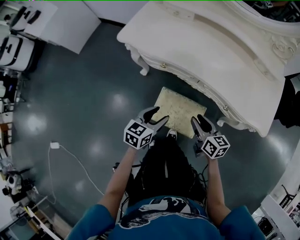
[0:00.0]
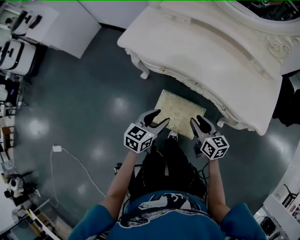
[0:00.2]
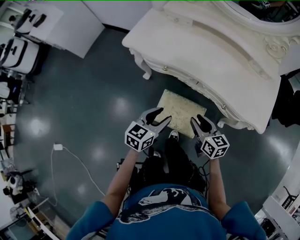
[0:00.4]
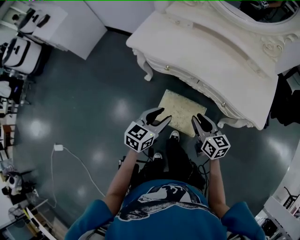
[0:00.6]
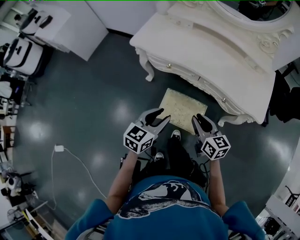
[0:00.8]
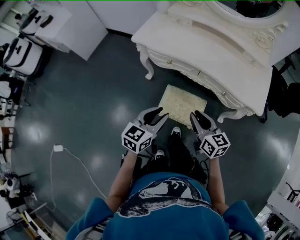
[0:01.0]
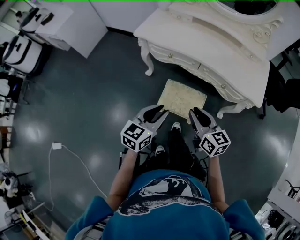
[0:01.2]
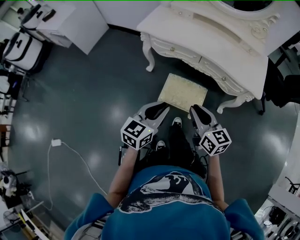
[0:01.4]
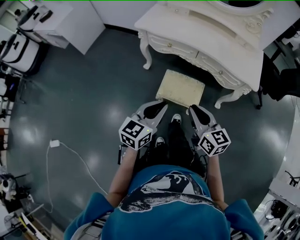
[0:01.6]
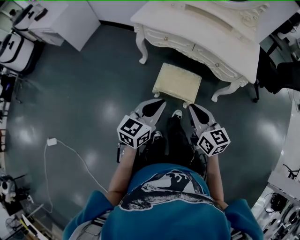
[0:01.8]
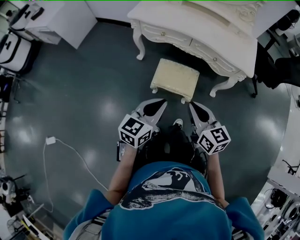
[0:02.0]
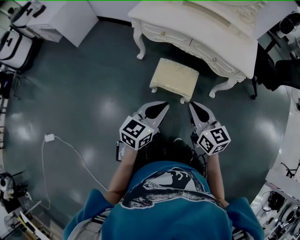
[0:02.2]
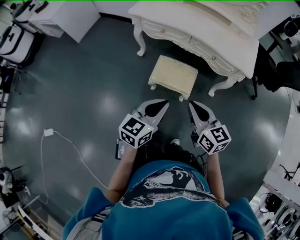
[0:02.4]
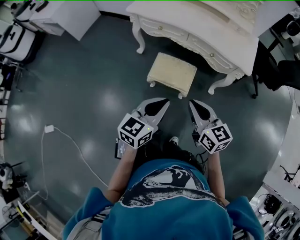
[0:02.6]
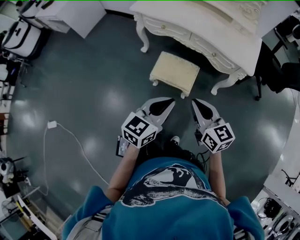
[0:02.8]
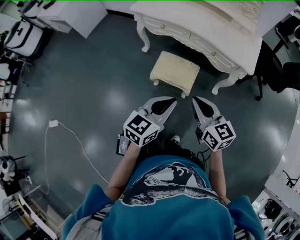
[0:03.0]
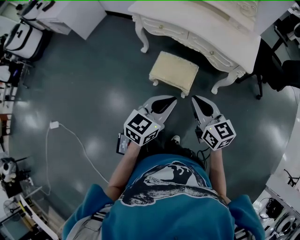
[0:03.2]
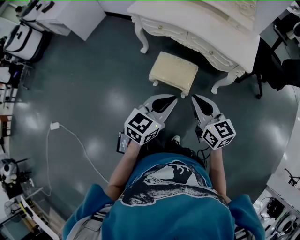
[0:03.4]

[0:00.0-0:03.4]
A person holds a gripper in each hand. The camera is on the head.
0:00.0 to 0:01.6: Both grippers move backward and upward, some 30 cm. The left gripper closes. The right gripper changes its angle by approximately 20 degrees.
0:01.6 to 0:03.4: The grippers both shift to the right and backward by roughly 15 cm.

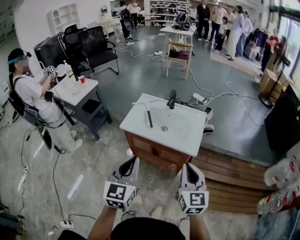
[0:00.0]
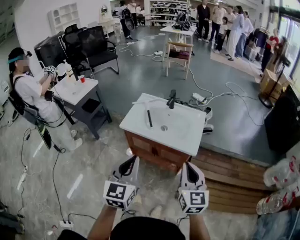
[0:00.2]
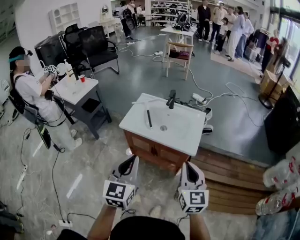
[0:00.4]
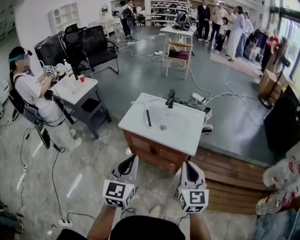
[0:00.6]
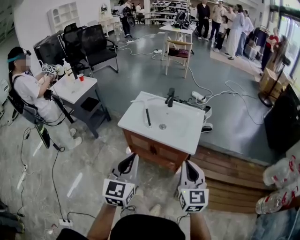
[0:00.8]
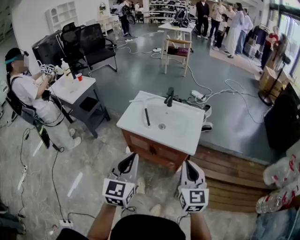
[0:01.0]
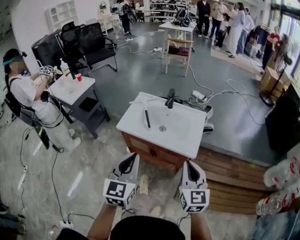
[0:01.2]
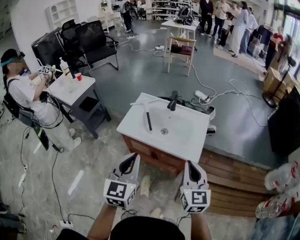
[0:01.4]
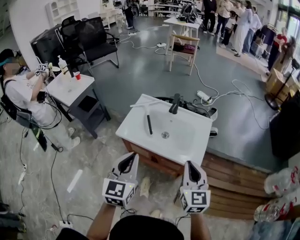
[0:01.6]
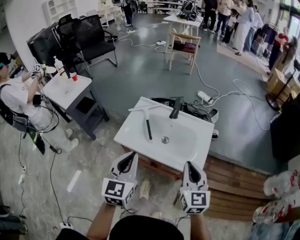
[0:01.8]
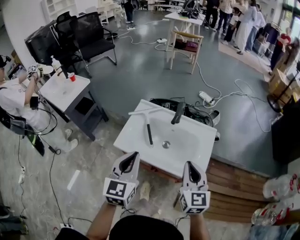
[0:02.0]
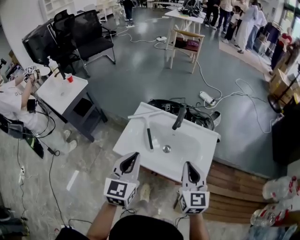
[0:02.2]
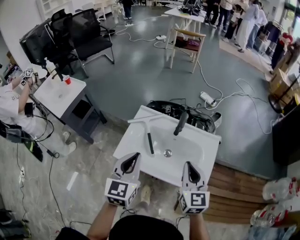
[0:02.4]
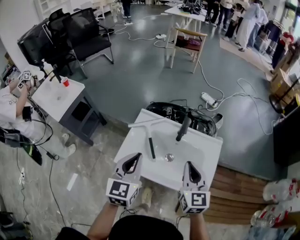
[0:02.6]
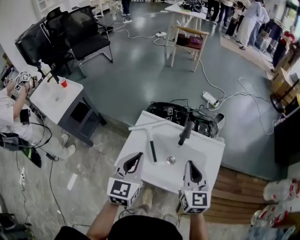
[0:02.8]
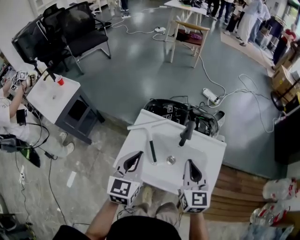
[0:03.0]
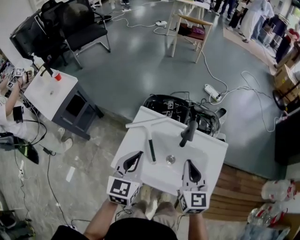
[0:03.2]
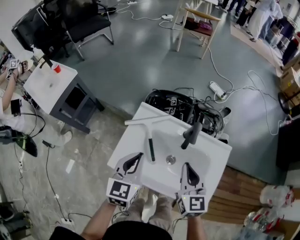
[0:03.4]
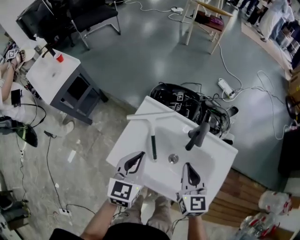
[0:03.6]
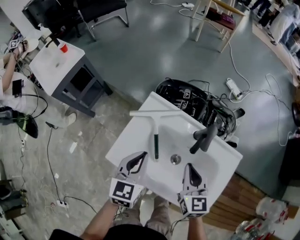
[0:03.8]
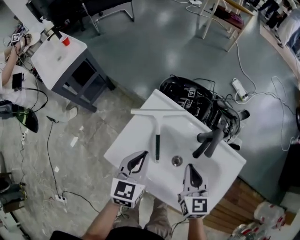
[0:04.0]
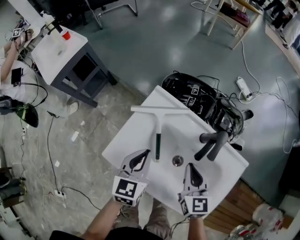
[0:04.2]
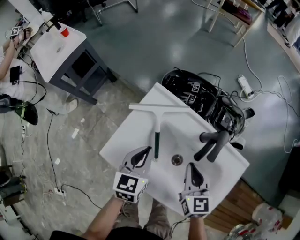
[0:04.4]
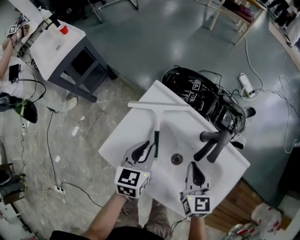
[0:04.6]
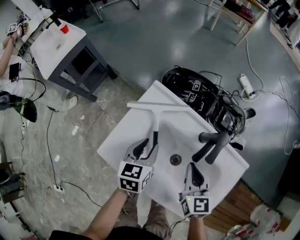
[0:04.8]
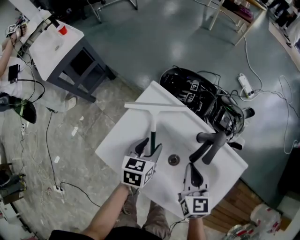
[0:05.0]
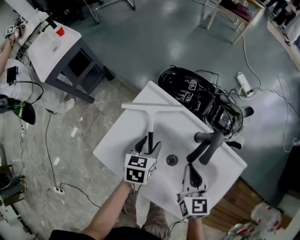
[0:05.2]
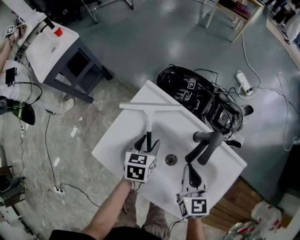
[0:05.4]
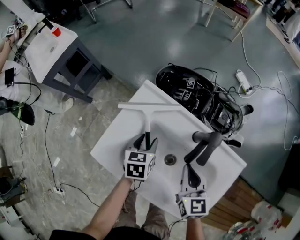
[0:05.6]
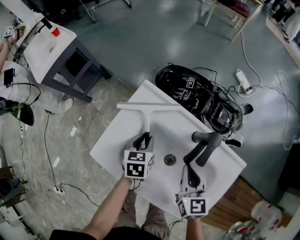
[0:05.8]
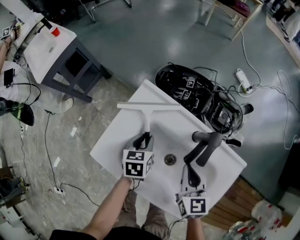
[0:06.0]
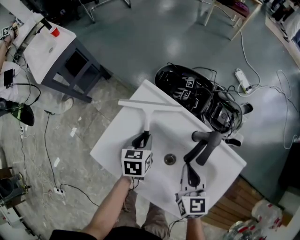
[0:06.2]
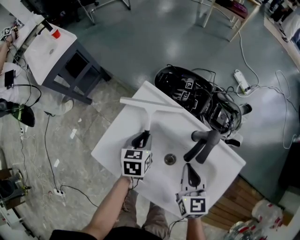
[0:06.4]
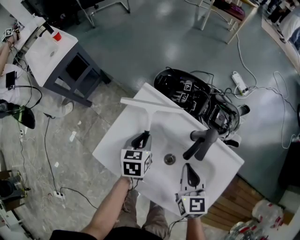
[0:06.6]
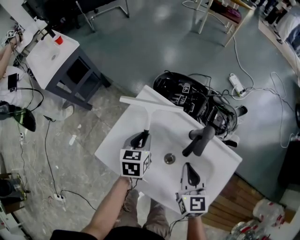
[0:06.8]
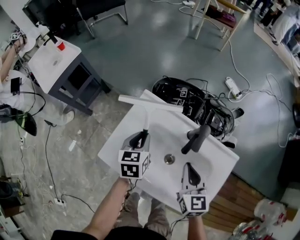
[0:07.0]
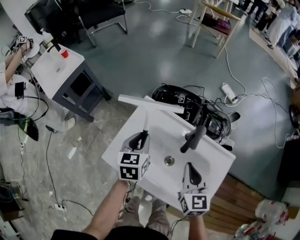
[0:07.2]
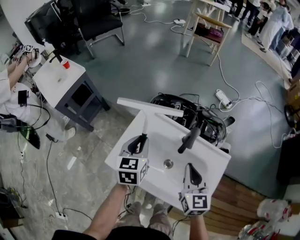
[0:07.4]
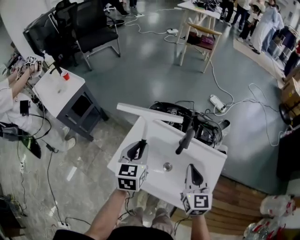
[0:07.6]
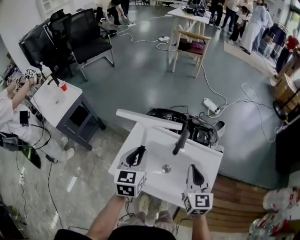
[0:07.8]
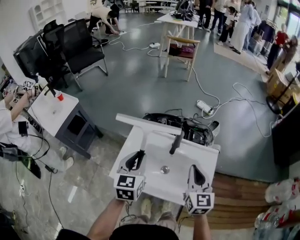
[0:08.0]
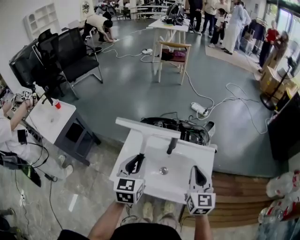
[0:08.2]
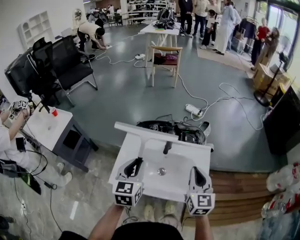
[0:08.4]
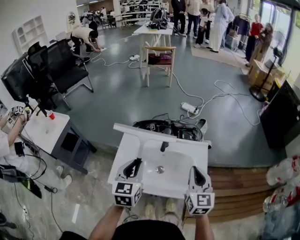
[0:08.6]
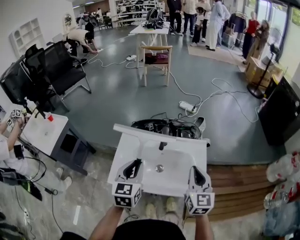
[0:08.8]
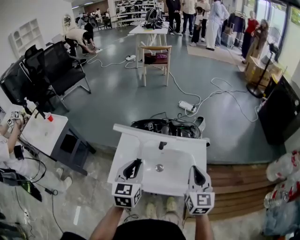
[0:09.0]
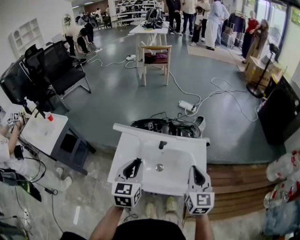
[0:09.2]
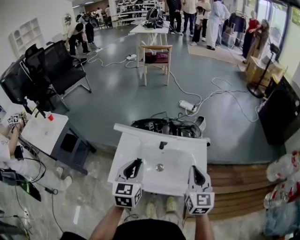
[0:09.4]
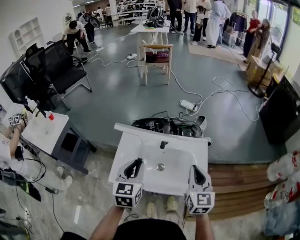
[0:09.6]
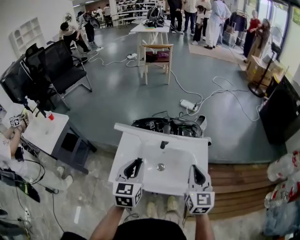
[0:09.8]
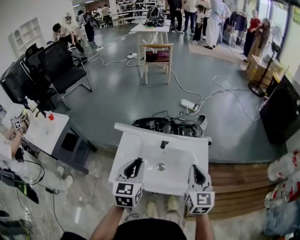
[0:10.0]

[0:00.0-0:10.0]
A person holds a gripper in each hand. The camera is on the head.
0:00.0 to 0:01.4: Both grippers travel together forward, roughly 10 cm.
0:01.4 to 0:02.8: The grippers both shift forward by roughly 35 cm.
0:02.8 to 0:04.2: The right gripper is displaced downward and forward by about 20 cm, and turns by some 20 degrees; the left gripper heads downward, covering approximately 20 cm, and swivels approximately 20 degrees.
0:04.2 to 0:05.8: The left gripper moves downward and forward, roughly 15 cm, swivels roughly 20 degrees, and opens its fingers.
0:05.8 to 0:07.2: The left gripper travels upward by some 15 cm, while the right gripper shifts about 10 cm upward.
0:07.2 to 0:08.6: The right gripper heads upward, backward and to the right, covering about 20 cm, and turns by roughly 30 degrees, while the left gripper goes roughly 20 cm upward and backward, and changes its angle by roughly 30 degrees.
0:08.6 to 0:10.0: The grippers make only small movements.

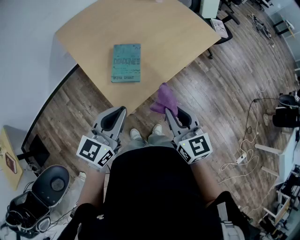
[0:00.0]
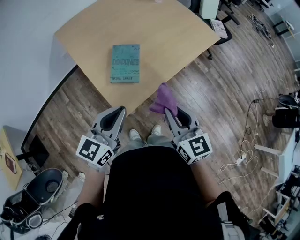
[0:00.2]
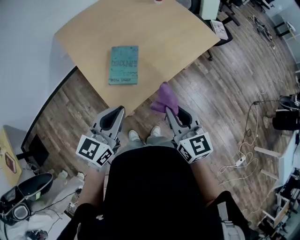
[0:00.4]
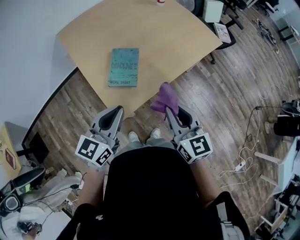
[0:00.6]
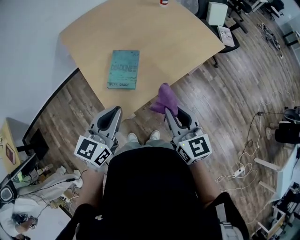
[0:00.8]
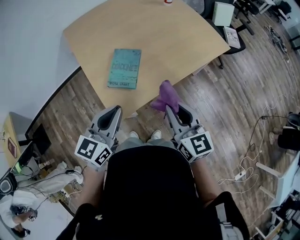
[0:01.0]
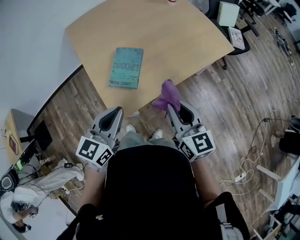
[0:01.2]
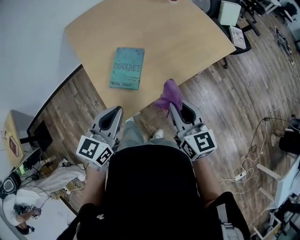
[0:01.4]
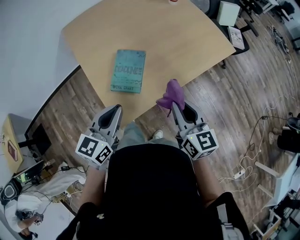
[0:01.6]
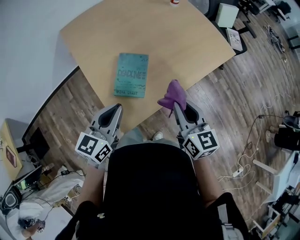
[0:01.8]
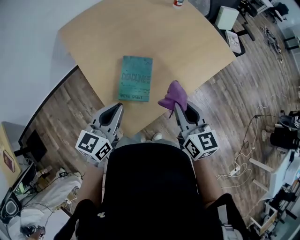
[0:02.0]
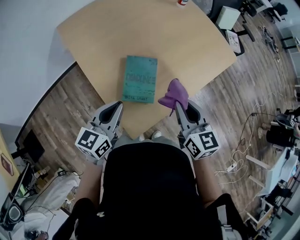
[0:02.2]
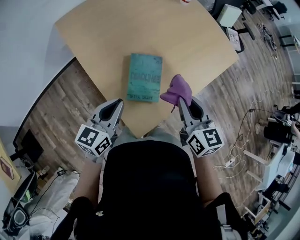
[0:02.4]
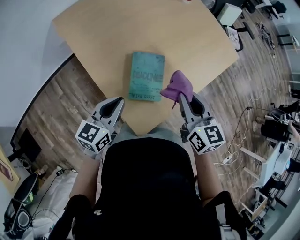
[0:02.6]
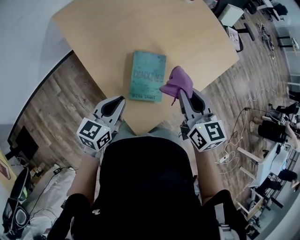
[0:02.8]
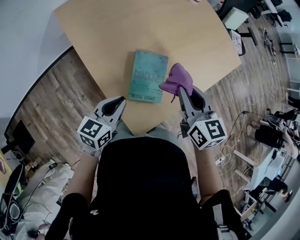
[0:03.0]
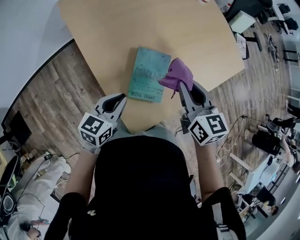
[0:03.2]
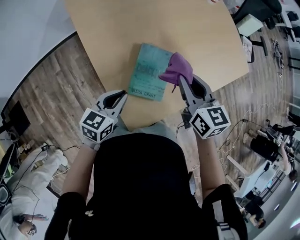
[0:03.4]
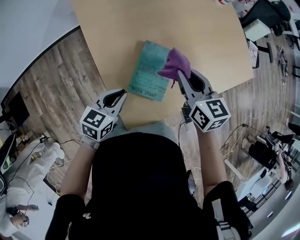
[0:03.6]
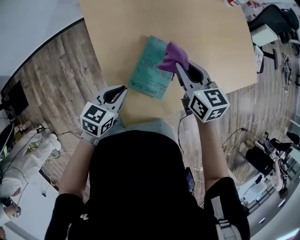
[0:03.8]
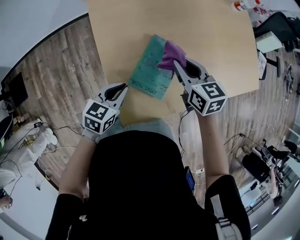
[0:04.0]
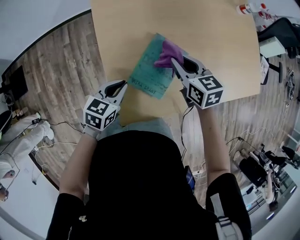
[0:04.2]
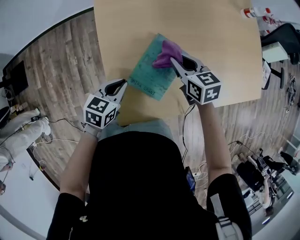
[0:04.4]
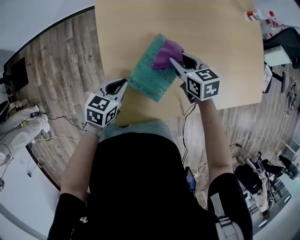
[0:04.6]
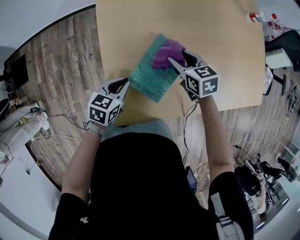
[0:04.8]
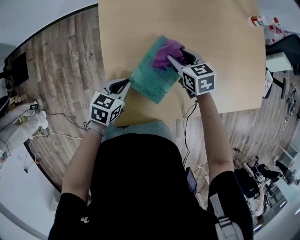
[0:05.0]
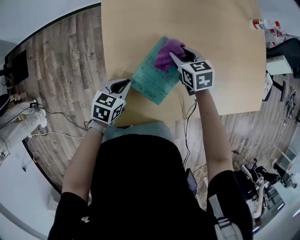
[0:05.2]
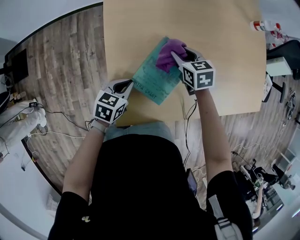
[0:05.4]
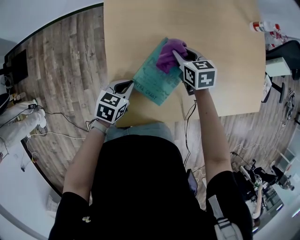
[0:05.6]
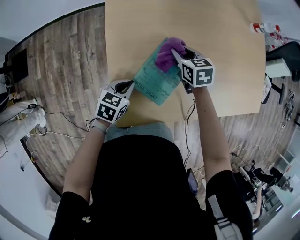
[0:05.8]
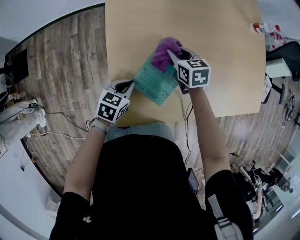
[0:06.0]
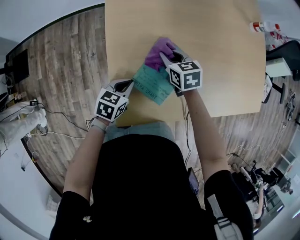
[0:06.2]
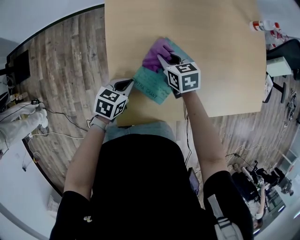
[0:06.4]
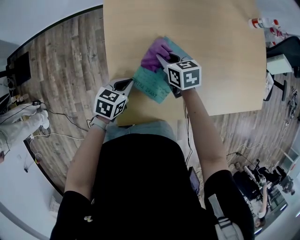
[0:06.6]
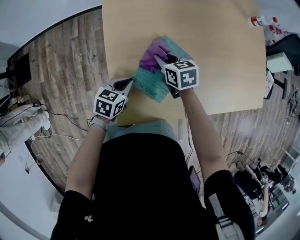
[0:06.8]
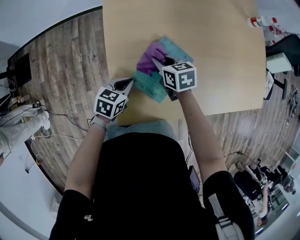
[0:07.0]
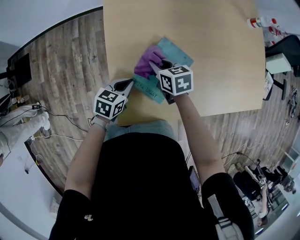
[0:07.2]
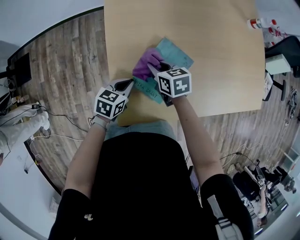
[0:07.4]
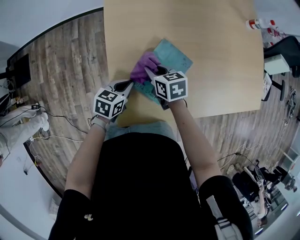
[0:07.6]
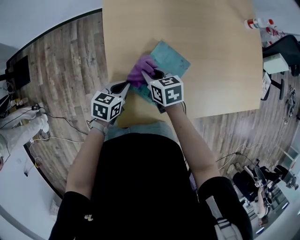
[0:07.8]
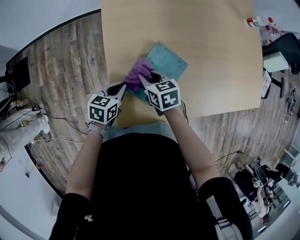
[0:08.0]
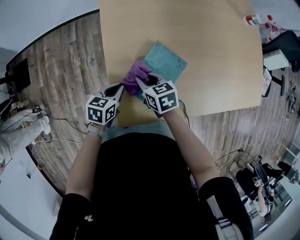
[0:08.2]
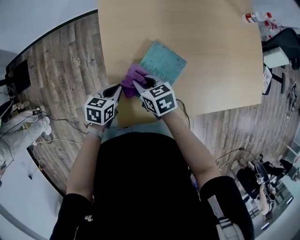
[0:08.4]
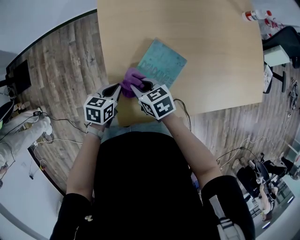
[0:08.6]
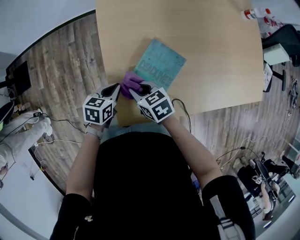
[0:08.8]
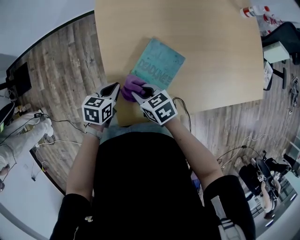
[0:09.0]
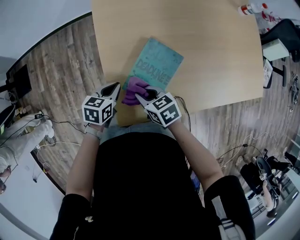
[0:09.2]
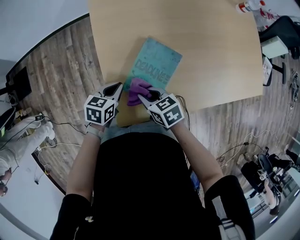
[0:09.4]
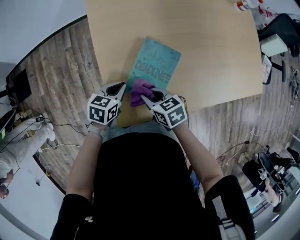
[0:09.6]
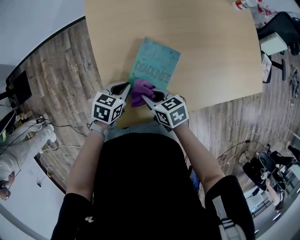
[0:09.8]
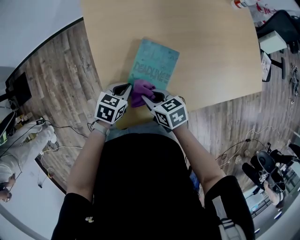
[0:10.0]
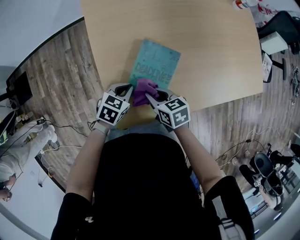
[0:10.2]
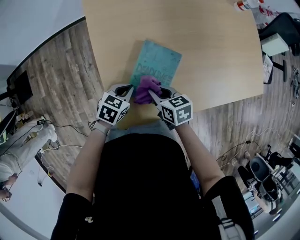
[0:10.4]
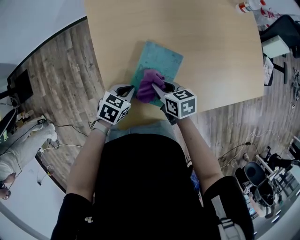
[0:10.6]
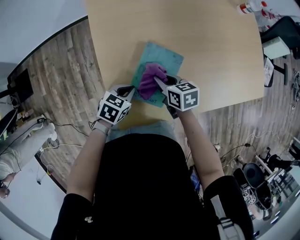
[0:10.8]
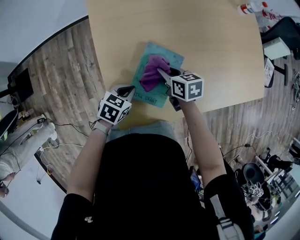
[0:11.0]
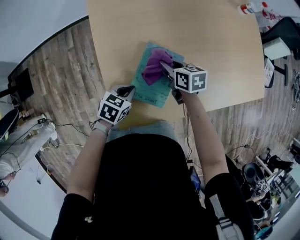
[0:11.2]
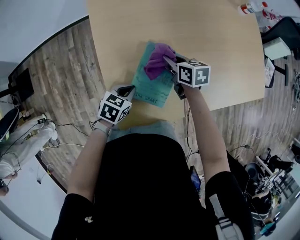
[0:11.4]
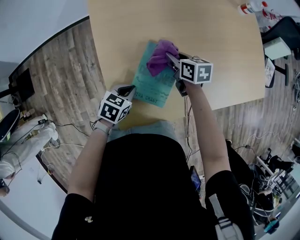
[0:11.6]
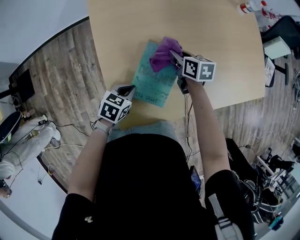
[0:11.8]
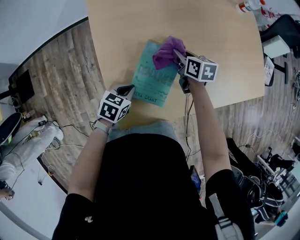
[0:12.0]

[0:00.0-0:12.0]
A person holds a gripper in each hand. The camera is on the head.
0:00.0 to 0:01.6: The left gripper heads forward, covering some 10 cm; the right gripper shifts roughly 15 cm forward and to the right.
0:01.6 to 0:03.0: The left gripper moves to the left, downward and forward, about 20 cm, while the right gripper travels to the left and forward by about 20 cm.
0:03.0 to 0:04.4: The right gripper moves downward, approximately 20 cm, and turns by approximately 40 degrees, while the left gripper heads downward, covering approximately 10 cm, and rotates about 30 degrees.
0:04.4 to 0:06.0: The right gripper moves downward and forward, roughly 10 cm, and opens, then closes again.
0:06.0 to 0:07.6: The right gripper is displaced backward and to the left by approximately 10 cm.
0:07.6 to 0:09.0: The right gripper travels backward by roughly 10 cm.
0:09.0 to 0:10.4: The two grippers go roughly 10 cm to the right. The left gripper rotates roughly 20 degrees.
0:10.4 to 0:12.0: The right gripper is displaced forward and to the right by about 20 cm.
